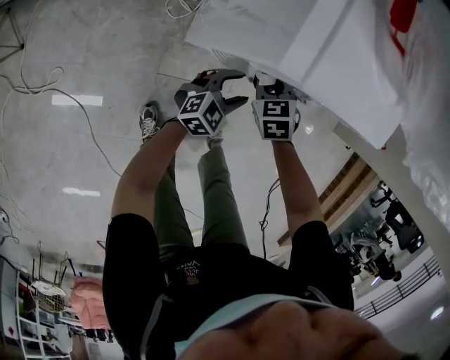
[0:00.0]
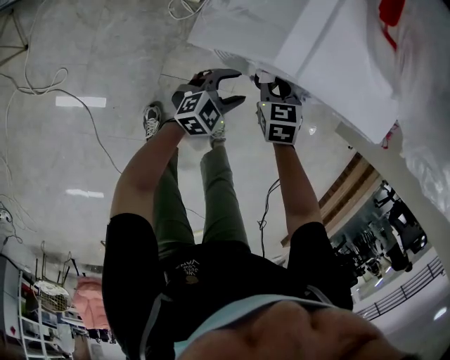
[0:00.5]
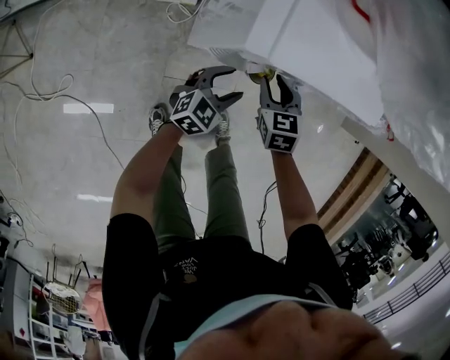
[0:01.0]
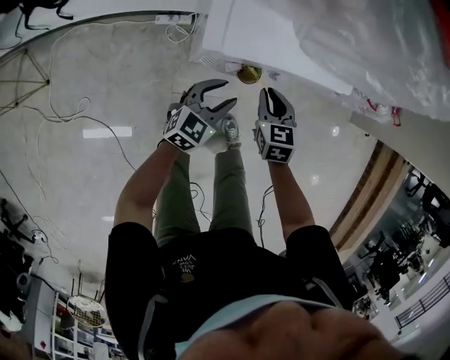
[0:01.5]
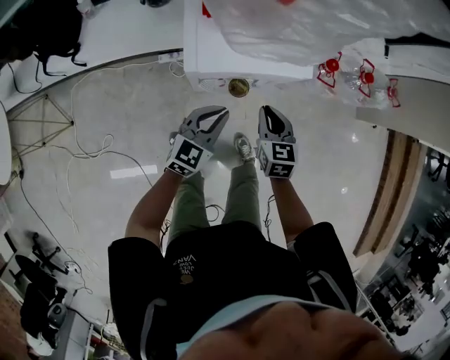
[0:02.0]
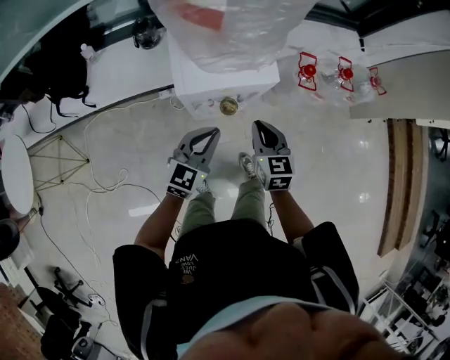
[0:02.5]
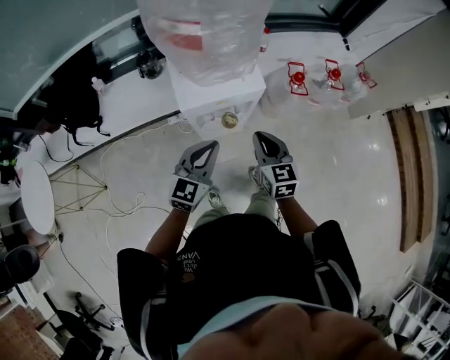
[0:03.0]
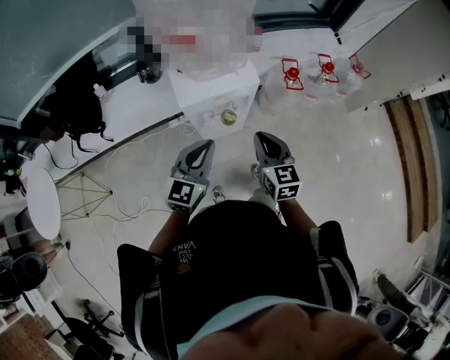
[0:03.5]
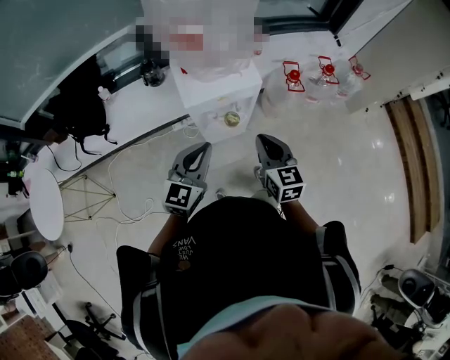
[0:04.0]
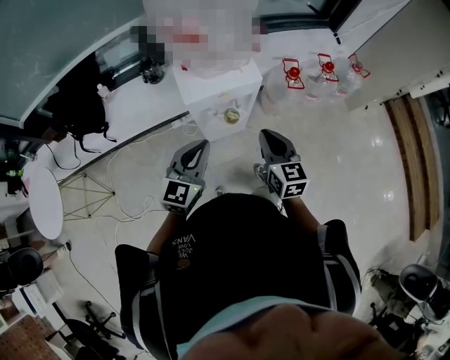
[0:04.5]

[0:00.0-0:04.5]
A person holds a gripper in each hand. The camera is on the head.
0:00.0 to 0:02.0: The right gripper goes about 25 cm upward and to the right, and swivels about 40 degrees; the left gripper moves upward, about 25 cm, and closes.
0:02.0 to 0:04.5: The grippers both shift upward and backward by about 30 cm. The right gripper swivels roughly 20 degrees.

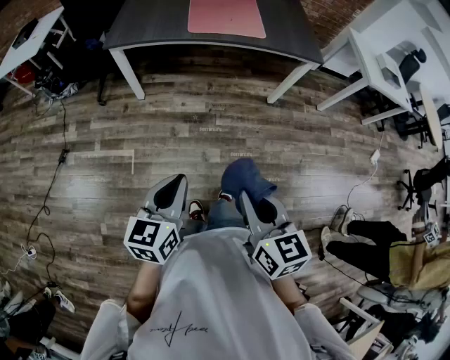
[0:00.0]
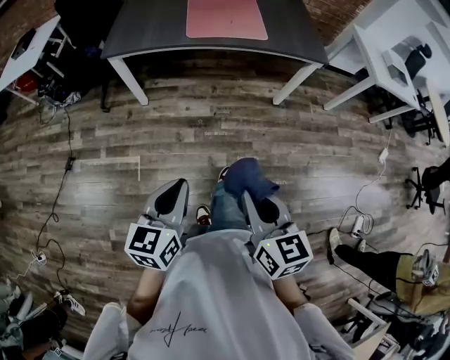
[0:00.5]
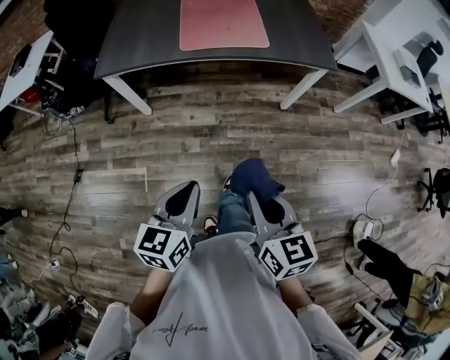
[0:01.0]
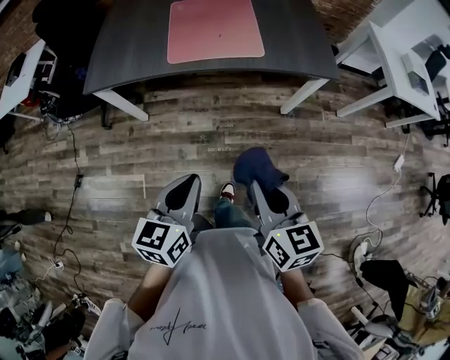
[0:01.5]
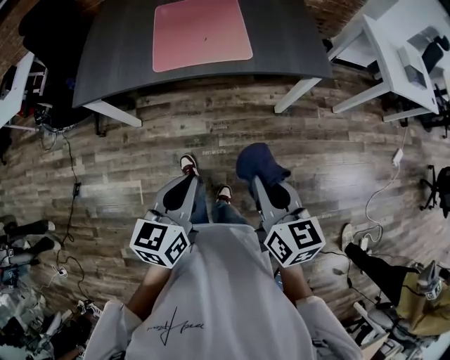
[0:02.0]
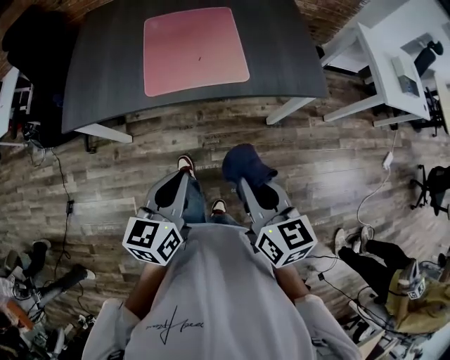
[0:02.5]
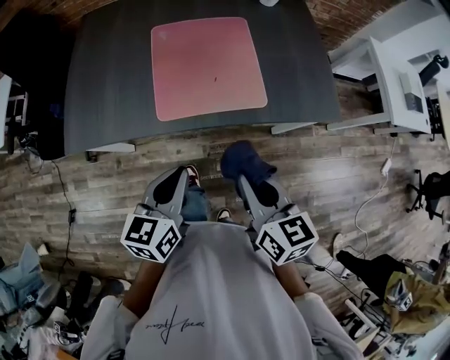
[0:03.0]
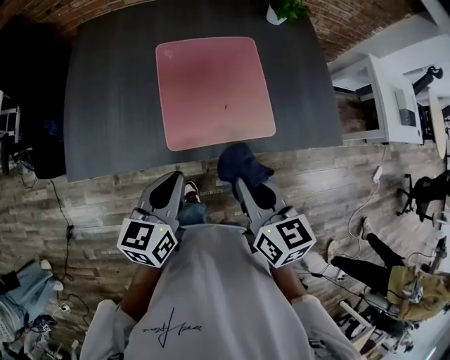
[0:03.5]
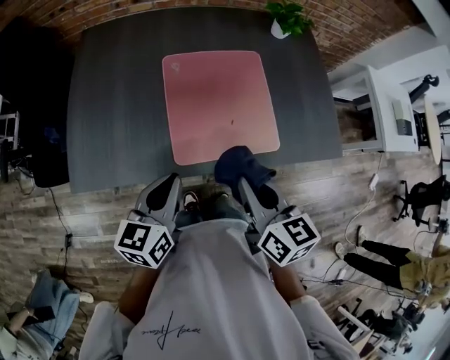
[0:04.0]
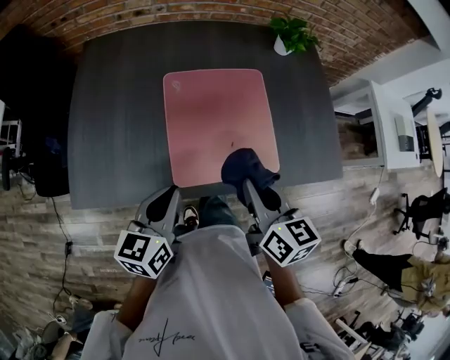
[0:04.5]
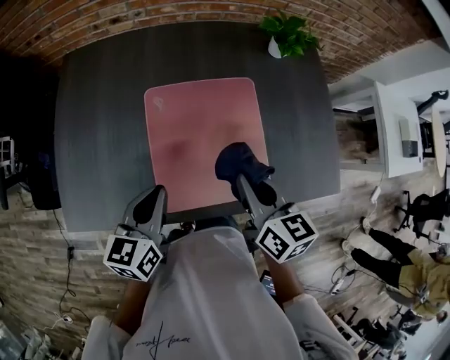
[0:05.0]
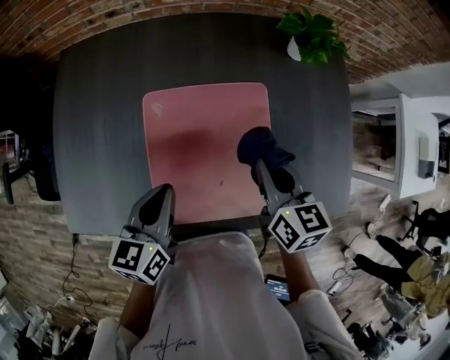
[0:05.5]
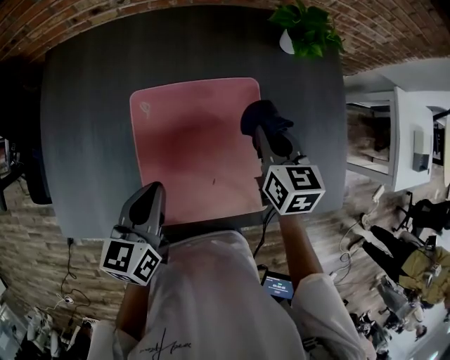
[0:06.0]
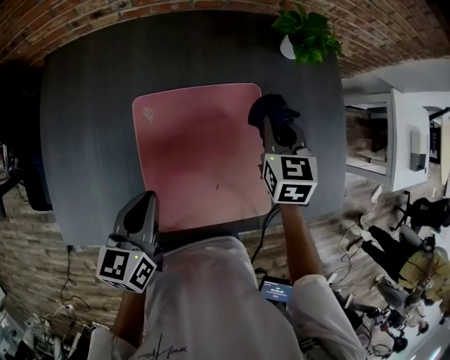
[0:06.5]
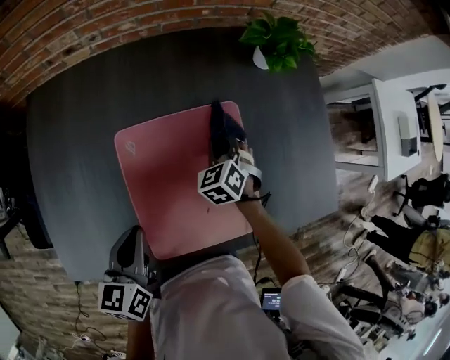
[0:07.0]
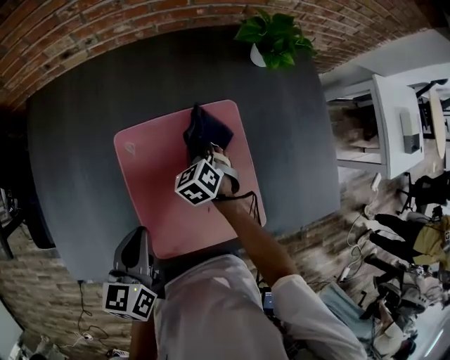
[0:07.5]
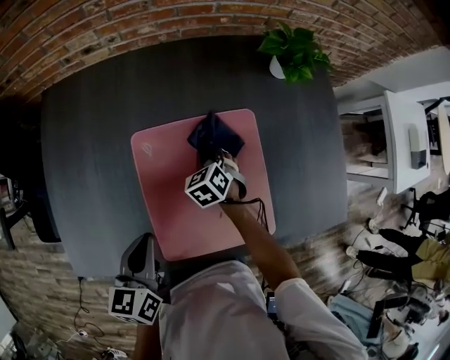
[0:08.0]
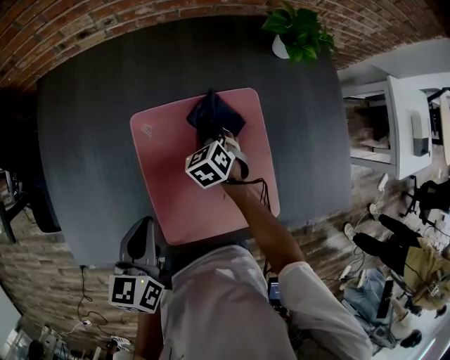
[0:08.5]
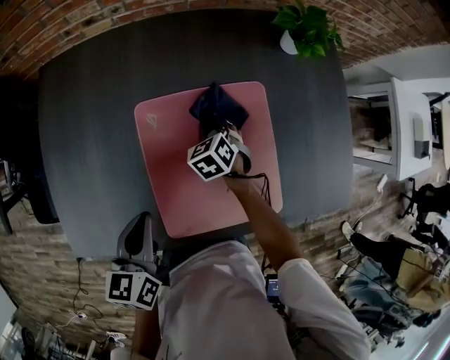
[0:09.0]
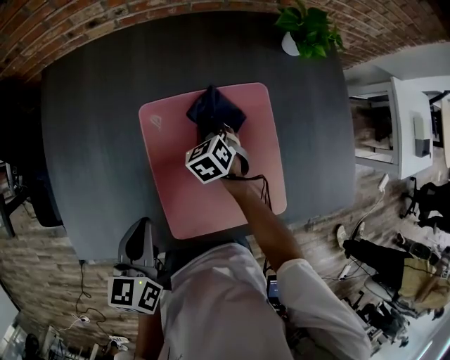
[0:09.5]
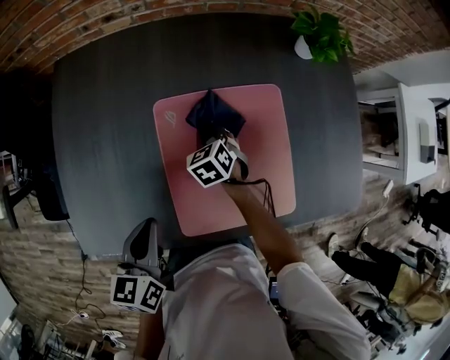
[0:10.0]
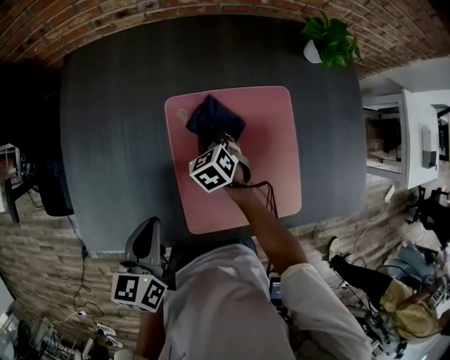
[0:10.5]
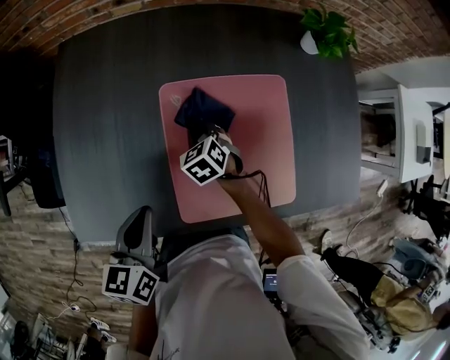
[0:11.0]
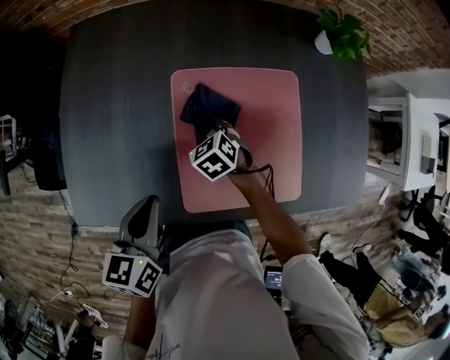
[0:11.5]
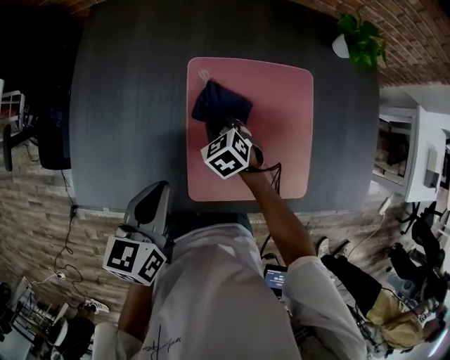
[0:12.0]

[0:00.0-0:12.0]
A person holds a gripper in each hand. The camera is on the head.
0:00.0 to 0:02.0: Both grippers travel together forward and to the right, about 35 cm.
0:02.0 to 0:04.0: The two grippers travel together, forward and to the left, about 40 cm.
0:04.0 to 0:06.0: The right gripper goes approximately 35 cm forward; the left gripper goes about 25 cm forward.
0:06.0 to 0:08.0: The right gripper travels downward and to the left by roughly 20 cm, and rotates some 40 degrees, while the left gripper moves roughly 5 cm.
0:08.0 to 0:10.0: Both grippers move to the left, some 5 cm.
0:10.0 to 0:12.0: The right gripper moves backward and to the left, about 10 cm.

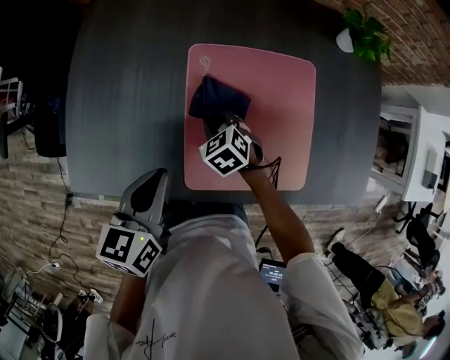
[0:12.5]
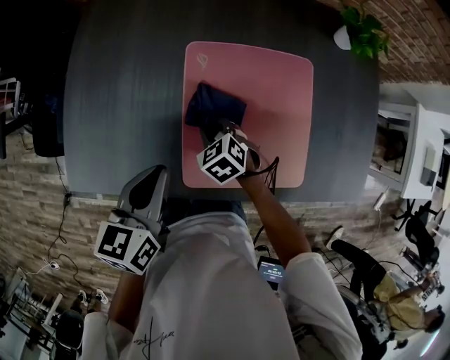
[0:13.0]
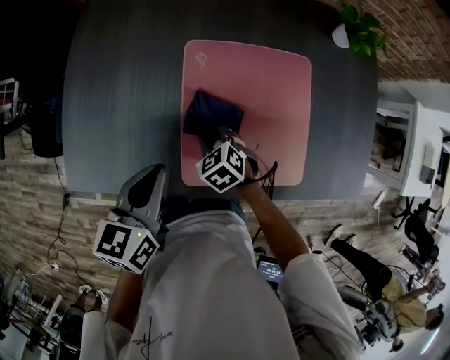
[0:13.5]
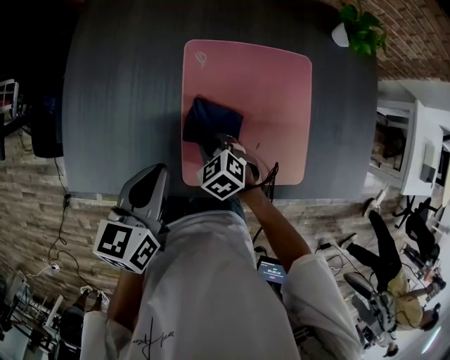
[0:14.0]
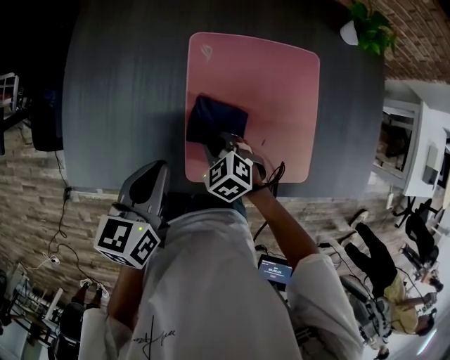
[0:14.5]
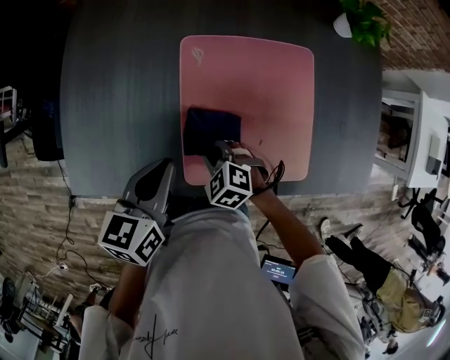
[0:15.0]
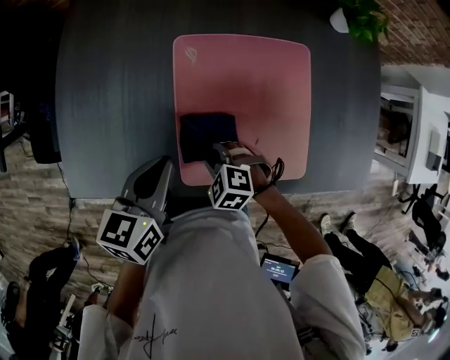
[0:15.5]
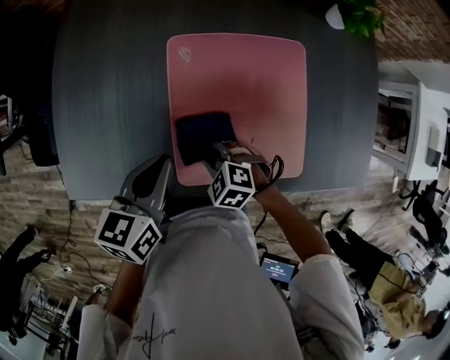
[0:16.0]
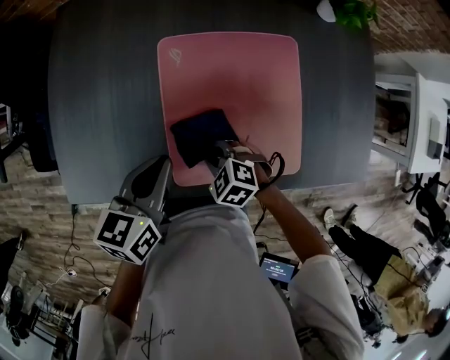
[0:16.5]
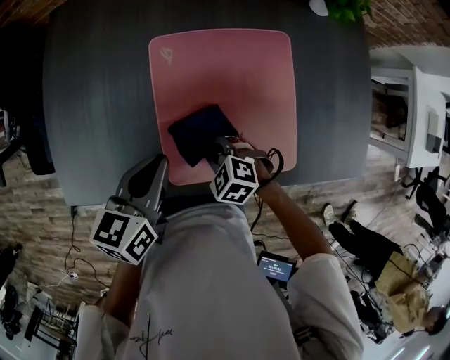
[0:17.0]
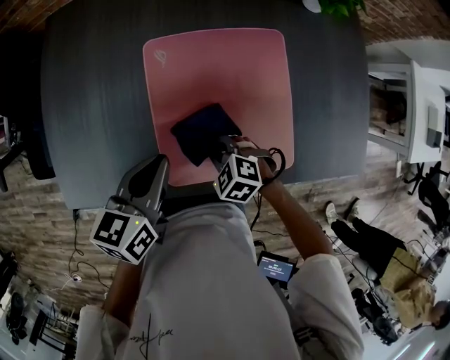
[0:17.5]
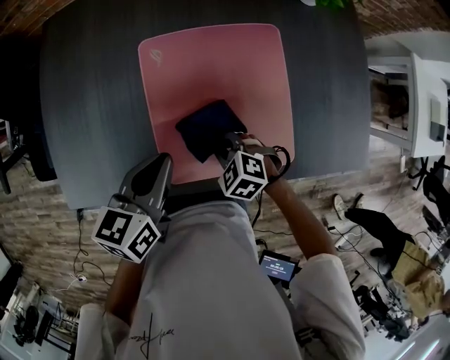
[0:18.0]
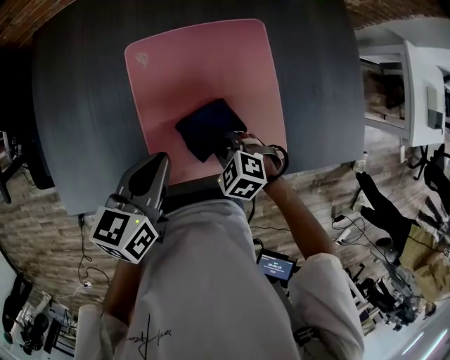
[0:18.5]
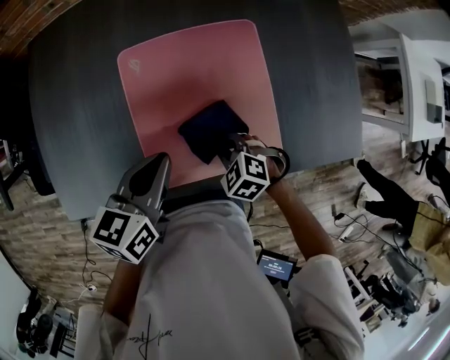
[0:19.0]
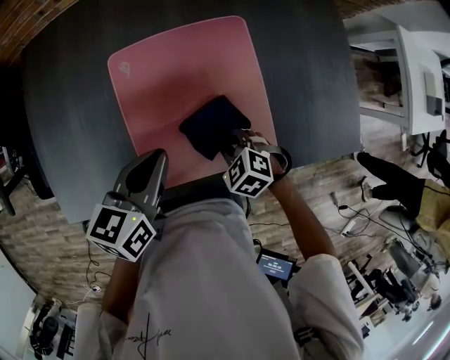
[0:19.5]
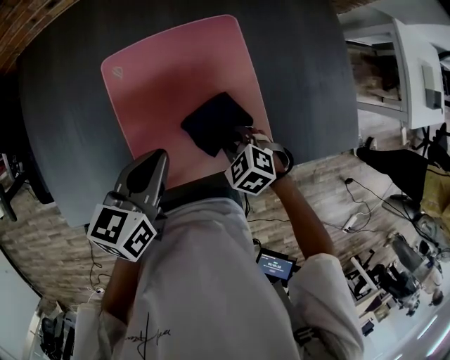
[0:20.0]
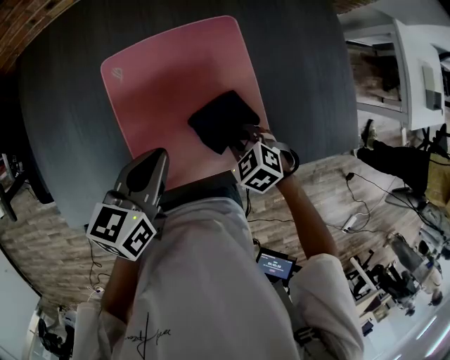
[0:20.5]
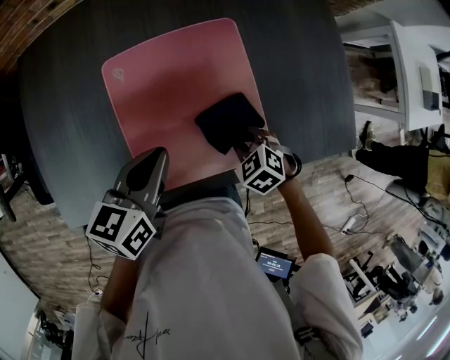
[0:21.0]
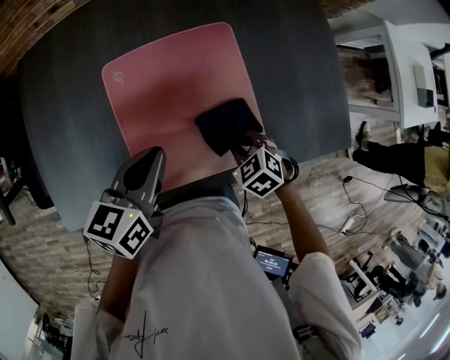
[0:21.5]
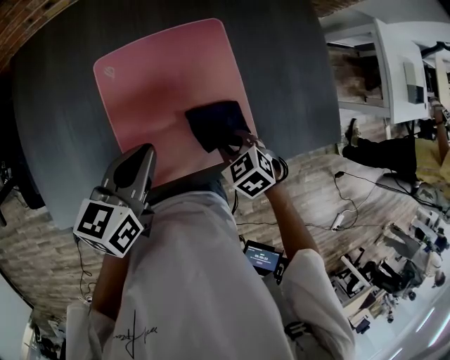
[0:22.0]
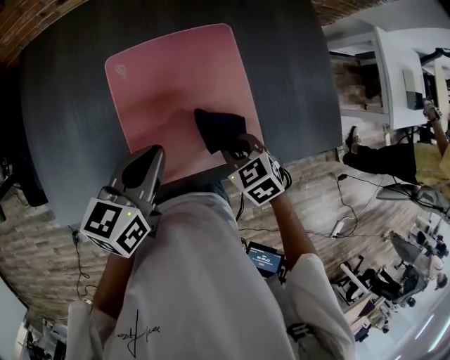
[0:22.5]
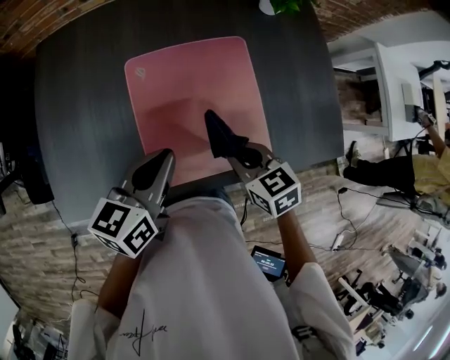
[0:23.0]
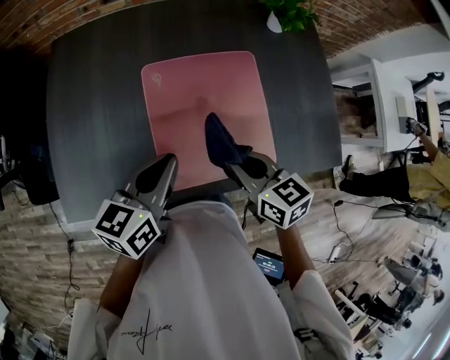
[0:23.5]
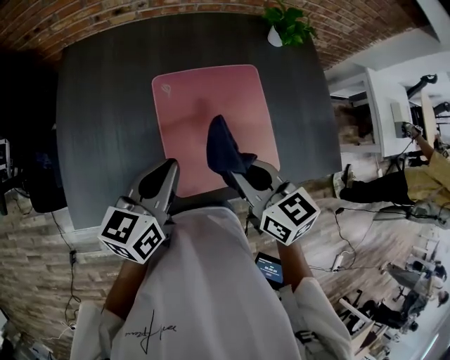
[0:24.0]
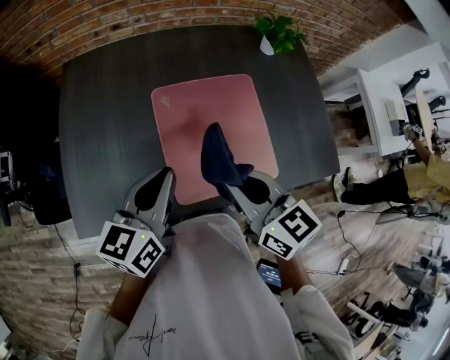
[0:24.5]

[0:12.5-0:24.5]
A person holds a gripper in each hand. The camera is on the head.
0:12.5 to 0:14.5: The right gripper moves backward, about 10 cm.
0:14.5 to 0:16.5: The right gripper moves roughly 5 cm. The left gripper moves to the right, about 5 cm.
0:16.5 to 0:18.5: The grippers both shift to the right by approximately 5 cm.
0:18.5 to 0:20.5: The left gripper goes approximately 5 cm to the right; the right gripper moves to the right, about 10 cm.
0:20.5 to 0:22.5: The right gripper travels upward by roughly 5 cm.
0:22.5 to 0:24.5: The right gripper shifts approximately 25 cm upward and to the left, and angles its fingers upward, by approximately 40 degrees, while the left gripper moves to the left and upward, about 15 cm.
